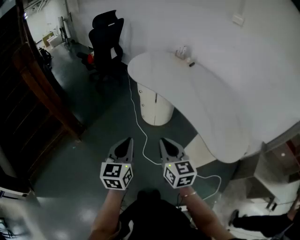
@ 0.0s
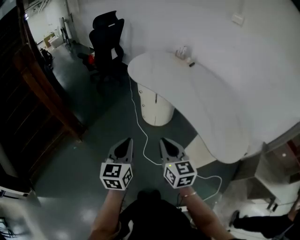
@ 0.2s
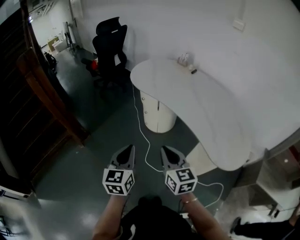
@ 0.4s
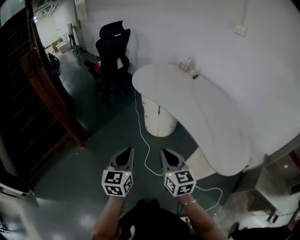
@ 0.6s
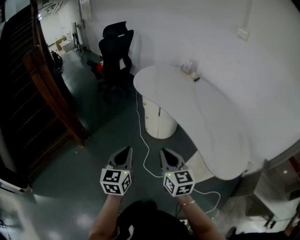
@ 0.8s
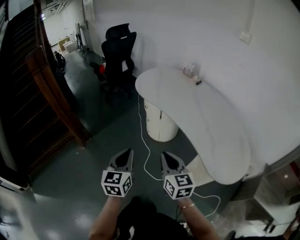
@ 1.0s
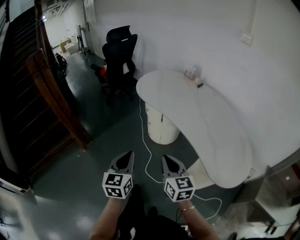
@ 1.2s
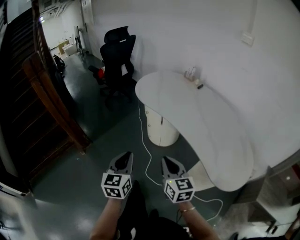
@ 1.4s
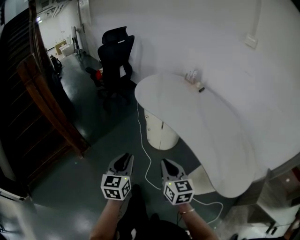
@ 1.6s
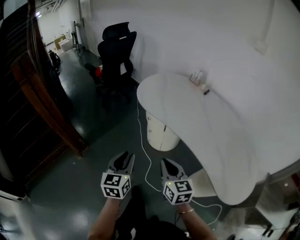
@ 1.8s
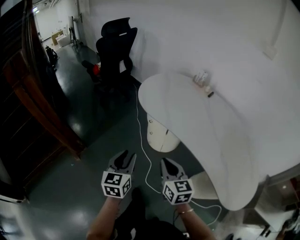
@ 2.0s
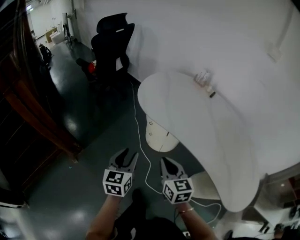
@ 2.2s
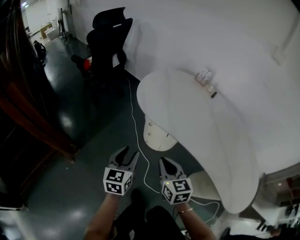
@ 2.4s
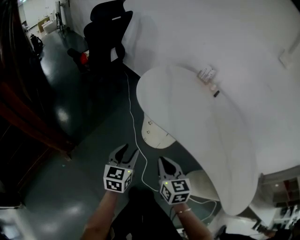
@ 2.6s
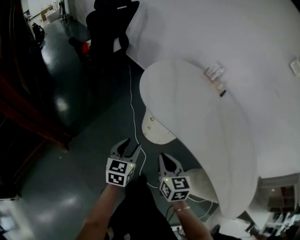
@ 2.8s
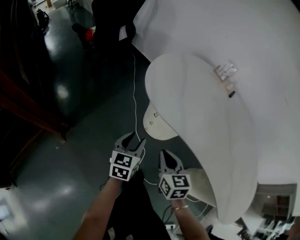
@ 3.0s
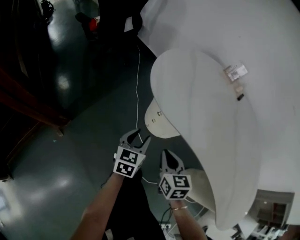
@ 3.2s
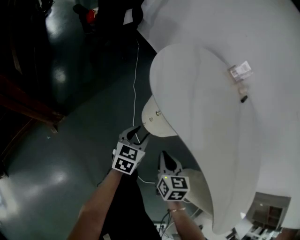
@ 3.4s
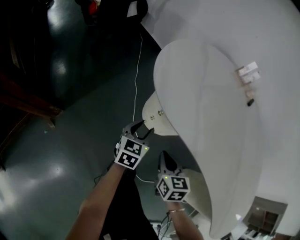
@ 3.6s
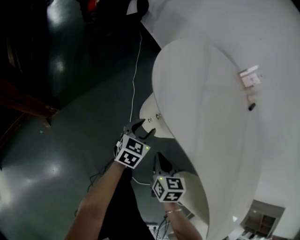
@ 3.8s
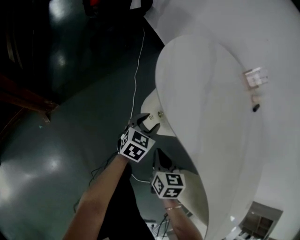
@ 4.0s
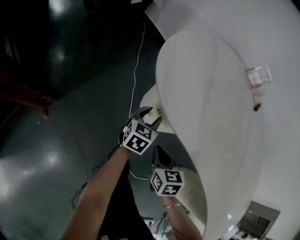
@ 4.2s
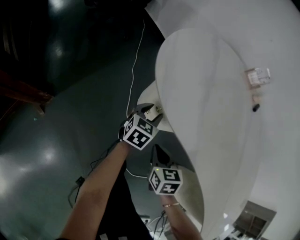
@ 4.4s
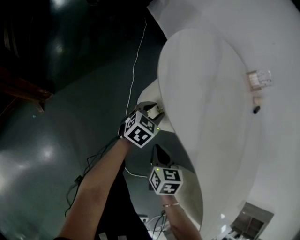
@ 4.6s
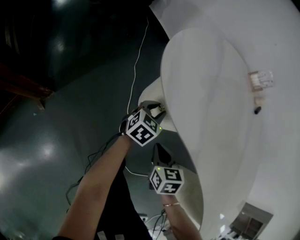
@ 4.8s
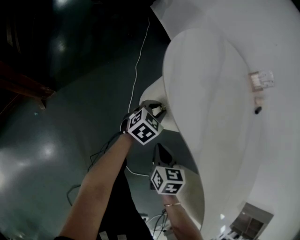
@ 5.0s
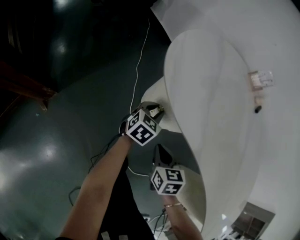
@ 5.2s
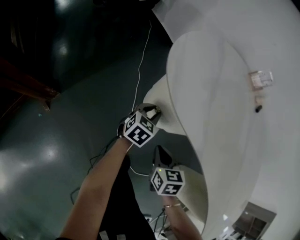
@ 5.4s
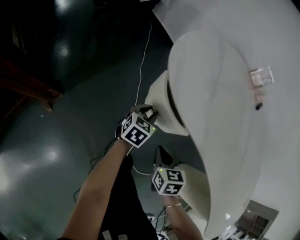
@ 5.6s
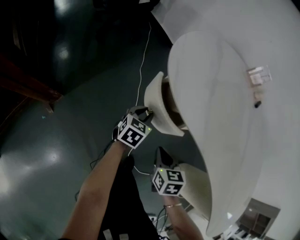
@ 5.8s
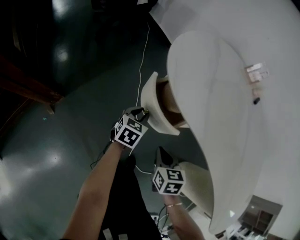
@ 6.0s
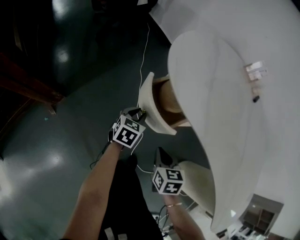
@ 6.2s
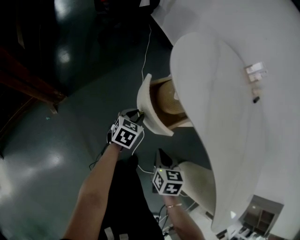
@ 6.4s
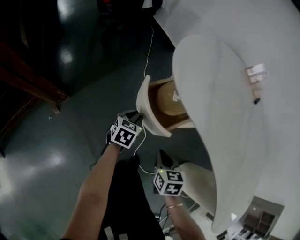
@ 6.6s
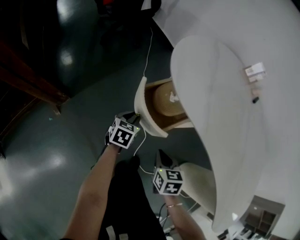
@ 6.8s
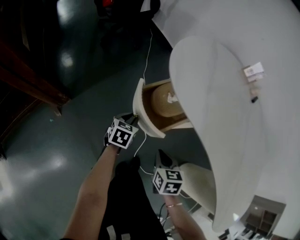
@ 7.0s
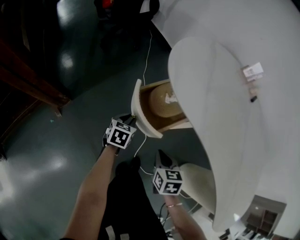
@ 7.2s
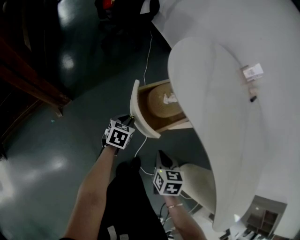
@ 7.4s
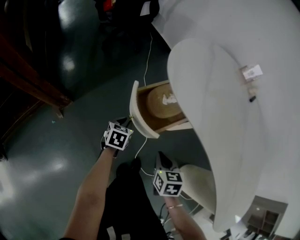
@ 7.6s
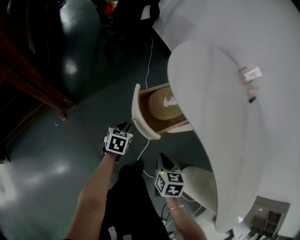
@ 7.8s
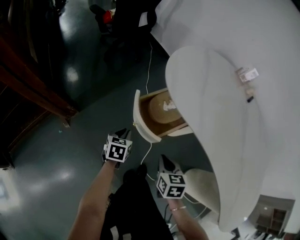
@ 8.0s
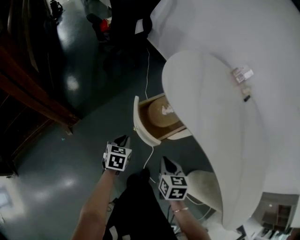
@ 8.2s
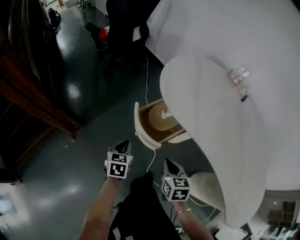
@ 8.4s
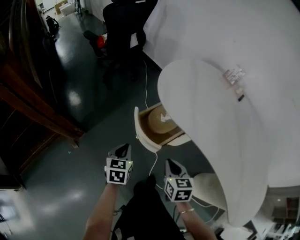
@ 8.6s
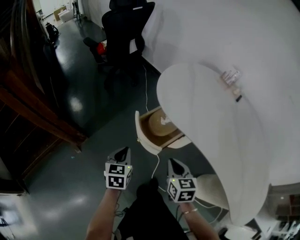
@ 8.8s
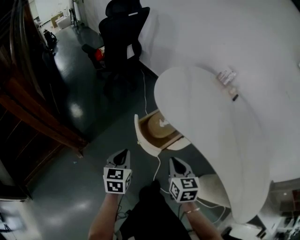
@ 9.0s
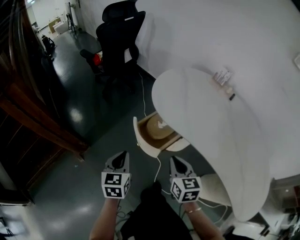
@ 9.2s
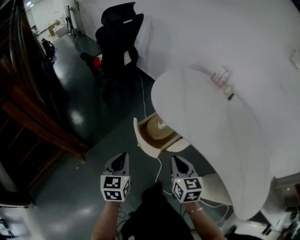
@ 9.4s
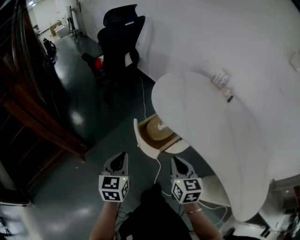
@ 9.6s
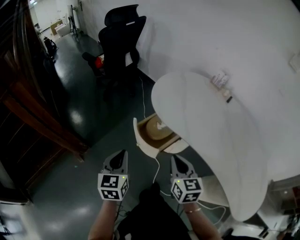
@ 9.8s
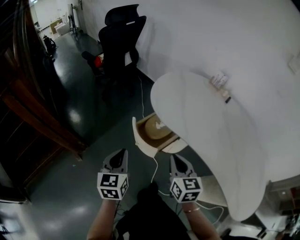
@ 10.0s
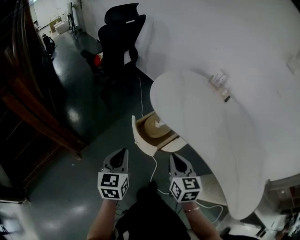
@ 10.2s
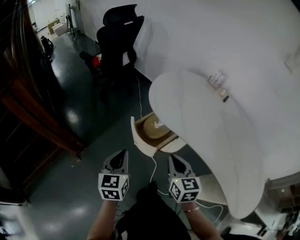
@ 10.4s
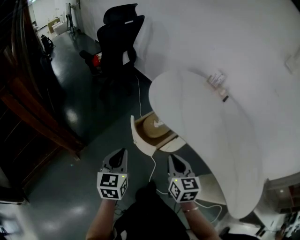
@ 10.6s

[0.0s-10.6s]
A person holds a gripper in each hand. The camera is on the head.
0.0s to 1.6s: Both grippers move forward, approximately 10 cm.
1.6s to 3.0s: The left gripper travels forward and downward by some 35 cm, and opens its fingers; the right gripper moves forward, downward and to the left, roughly 30 cm.
3.0s to 4.6s: The left gripper shifts roughly 25 cm forward, downward and to the right, while the right gripper goes about 20 cm downward and forward.
4.6s to 6.0s: The left gripper heads backward and to the left, covering approximately 10 cm; the right gripper heads backward, covering roughly 5 cm.
6.0s to 7.6s: The right gripper changes place by some 5 cm. The left gripper shifts roughly 10 cm backward and to the left.
7.6s to 9.0s: The grippers both shift upward by roughly 20 cm. The left gripper changes its angle by roughly 20 degrees.
9.0s to 10.6s: Both grippers travel together upward, approximately 5 cm.

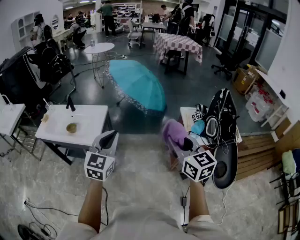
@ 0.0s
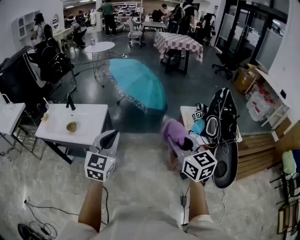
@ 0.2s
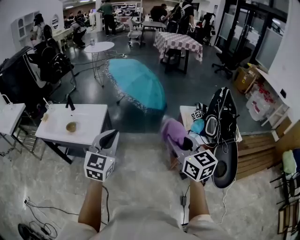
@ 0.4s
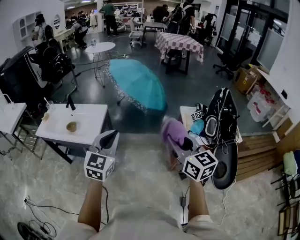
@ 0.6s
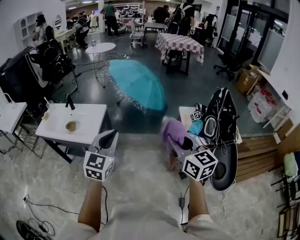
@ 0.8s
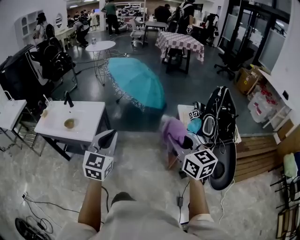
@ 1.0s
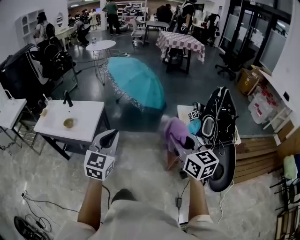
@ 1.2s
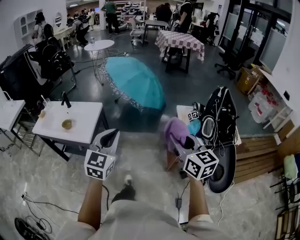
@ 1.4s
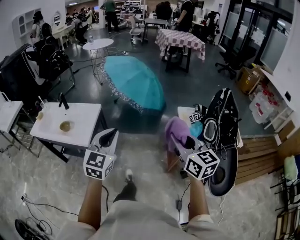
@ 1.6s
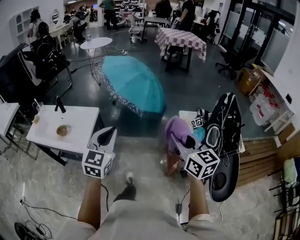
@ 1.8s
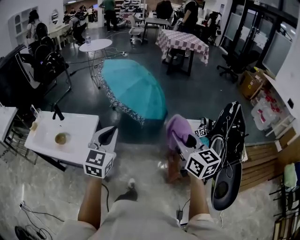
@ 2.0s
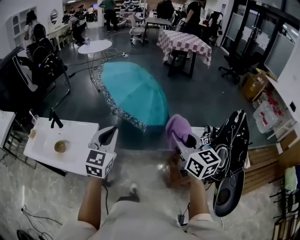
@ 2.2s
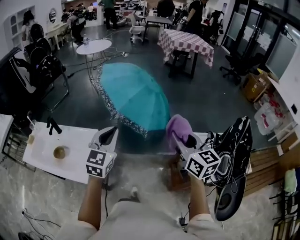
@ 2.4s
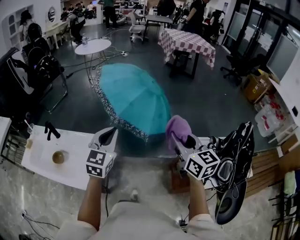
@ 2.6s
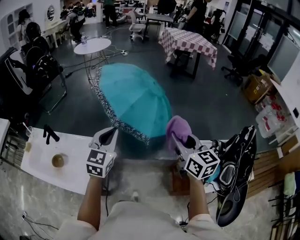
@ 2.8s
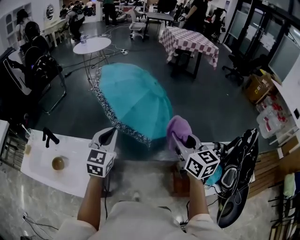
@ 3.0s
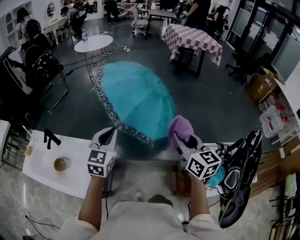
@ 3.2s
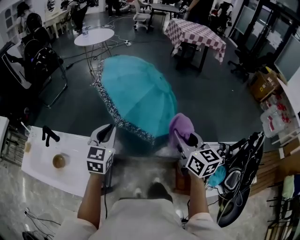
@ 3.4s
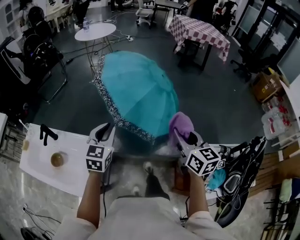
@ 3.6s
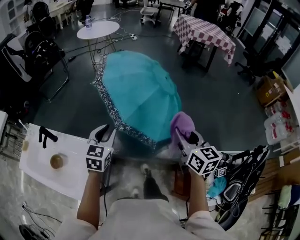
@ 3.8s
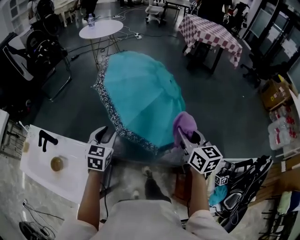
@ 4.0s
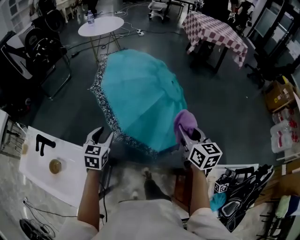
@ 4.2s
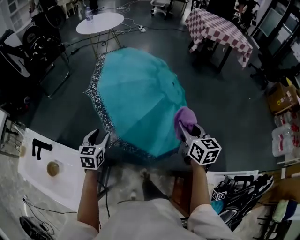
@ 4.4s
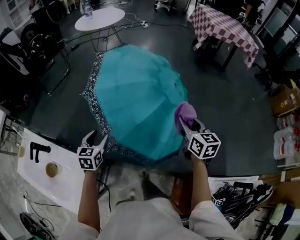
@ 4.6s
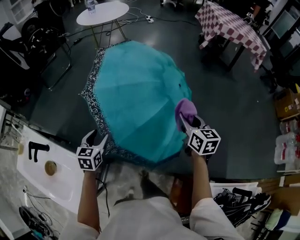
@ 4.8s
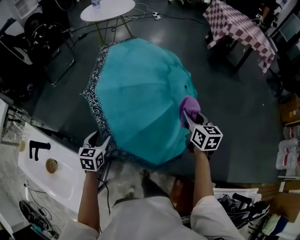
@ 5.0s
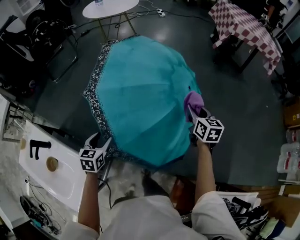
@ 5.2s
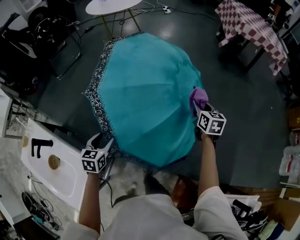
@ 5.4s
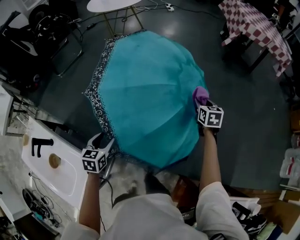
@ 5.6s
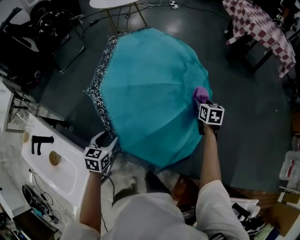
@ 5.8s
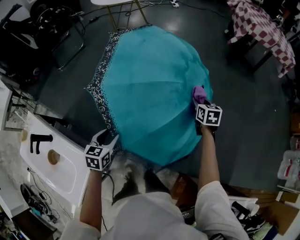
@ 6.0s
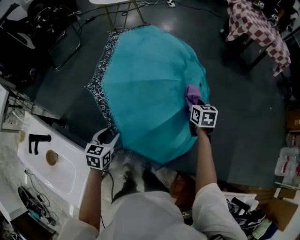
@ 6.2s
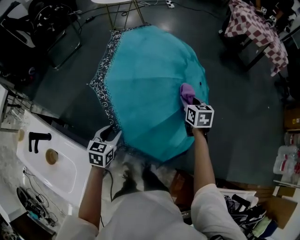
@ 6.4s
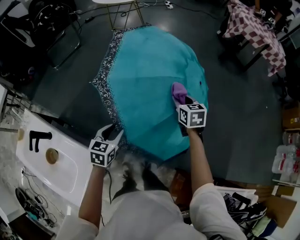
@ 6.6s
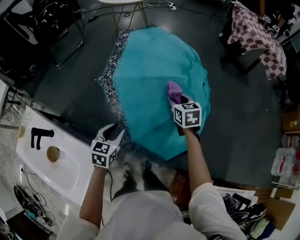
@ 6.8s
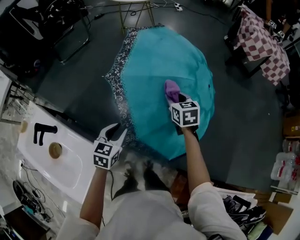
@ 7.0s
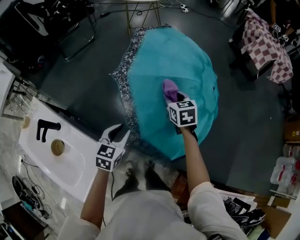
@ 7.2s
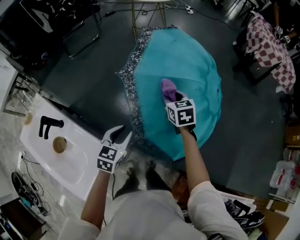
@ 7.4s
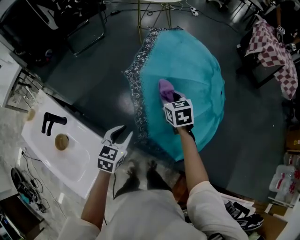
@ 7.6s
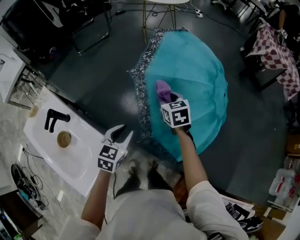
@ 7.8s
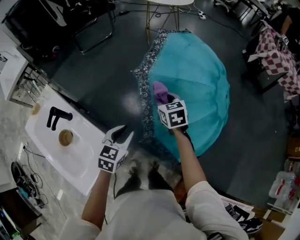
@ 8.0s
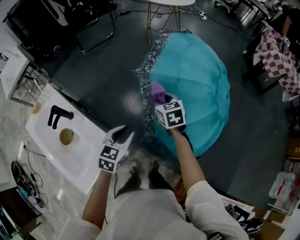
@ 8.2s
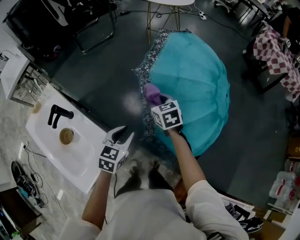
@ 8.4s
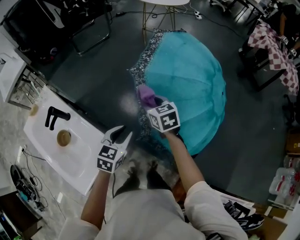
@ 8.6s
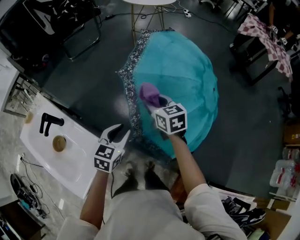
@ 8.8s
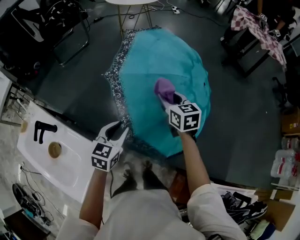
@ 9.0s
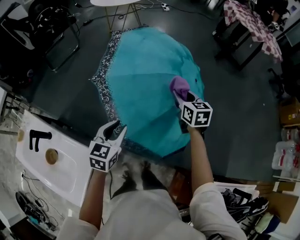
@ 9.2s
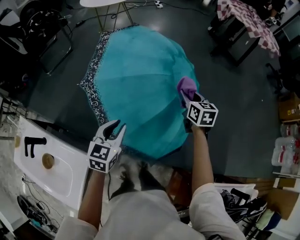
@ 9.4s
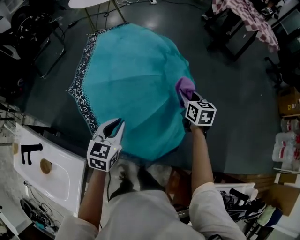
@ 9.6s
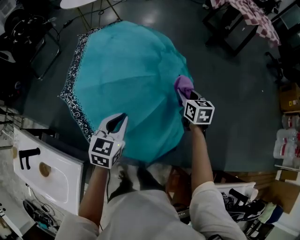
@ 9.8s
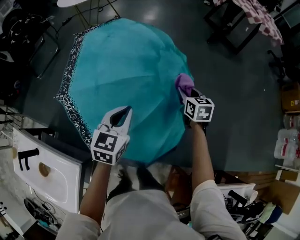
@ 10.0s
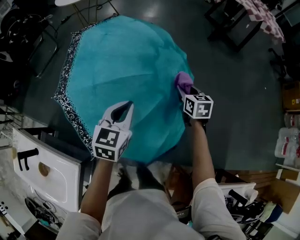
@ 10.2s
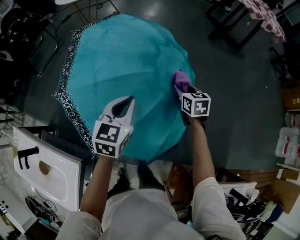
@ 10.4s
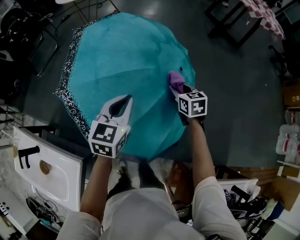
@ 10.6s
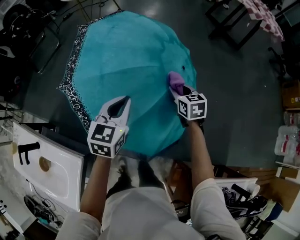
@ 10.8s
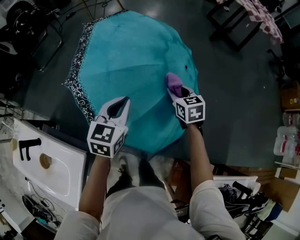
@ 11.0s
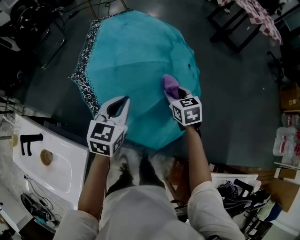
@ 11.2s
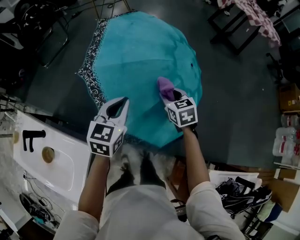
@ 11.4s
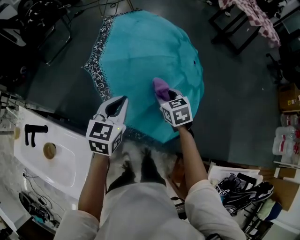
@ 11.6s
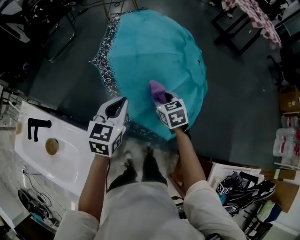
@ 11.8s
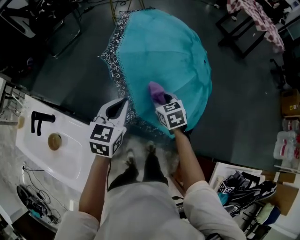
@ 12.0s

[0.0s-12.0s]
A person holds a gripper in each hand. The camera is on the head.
0.0s to 1.6s: Both grippers move to the right and forward, roughly 10 cm.
1.6s to 3.0s: The two grippers travel together, forward, approximately 50 cm.
3.0s to 4.4s: The right gripper goes about 35 cm forward, while the left gripper travels forward and downward by approximately 30 cm, turns by about 30 degrees, and opens its fingers.
4.4s to 6.0s: The left gripper is displaced downward and forward by about 15 cm, while the right gripper travels forward and downward by approximately 35 cm, and changes its angle by about 20 degrees.
6.0s to 7.6s: The right gripper is displaced to the left by roughly 35 cm, and turns by some 30 degrees. Meanwhile the left gripper goes approximately 10 cm to the left, backward and upward, and closes up.
7.6s to 9.0s: The right gripper is displaced to the right and upward by approximately 10 cm. The left gripper is displaced to the right by roughly 5 cm.
9.0s to 10.4s: The right gripper is displaced to the right, downward and forward by some 35 cm. The left gripper shifts about 30 cm to the right and forward, and closes up.
10.4s to 12.0s: The grippers both shift to the left and backward by roughly 35 cm. The right gripper changes its angle by roughly 20 degrees.

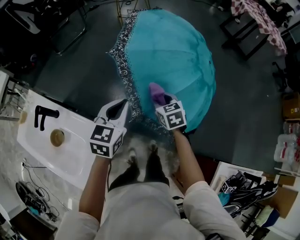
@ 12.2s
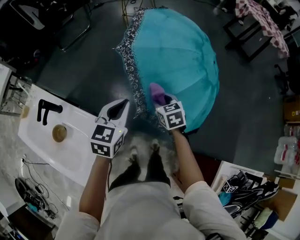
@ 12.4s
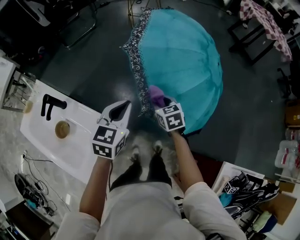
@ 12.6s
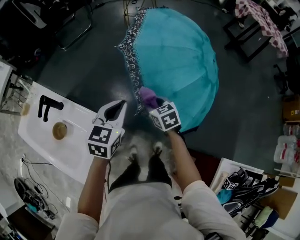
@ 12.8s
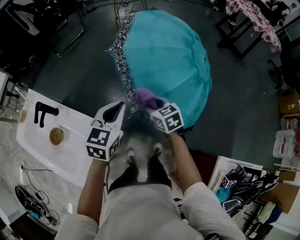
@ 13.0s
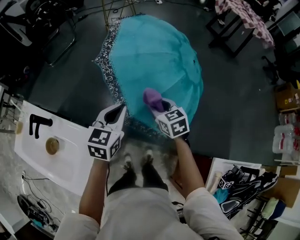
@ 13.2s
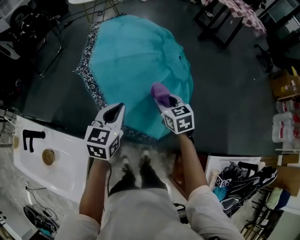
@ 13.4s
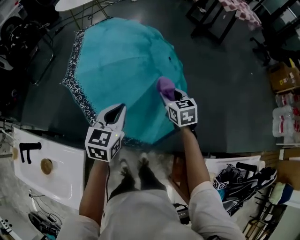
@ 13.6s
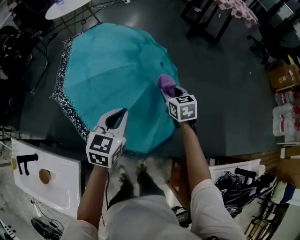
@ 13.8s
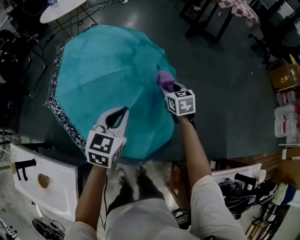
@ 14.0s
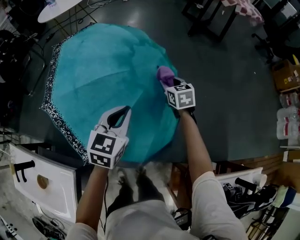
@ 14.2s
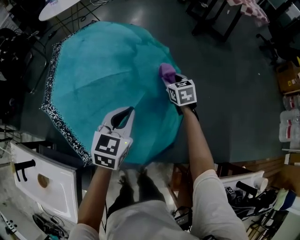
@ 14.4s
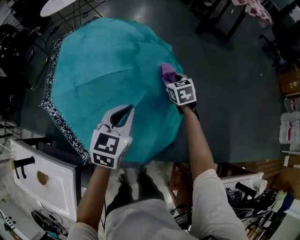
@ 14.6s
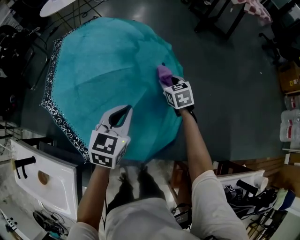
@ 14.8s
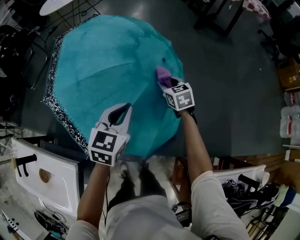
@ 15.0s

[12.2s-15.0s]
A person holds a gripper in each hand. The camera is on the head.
12.2s to 13.6s: The two grippers go roughly 20 cm to the right.
13.6s to 15.0s: The right gripper is displaced forward and downward by some 15 cm; the left gripper is displaced forward and to the right by some 15 cm.
